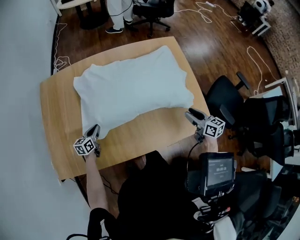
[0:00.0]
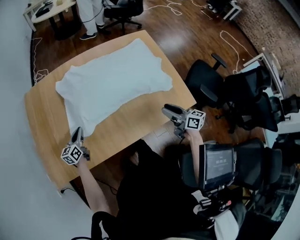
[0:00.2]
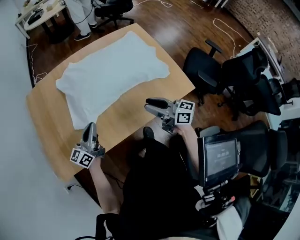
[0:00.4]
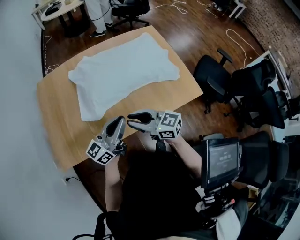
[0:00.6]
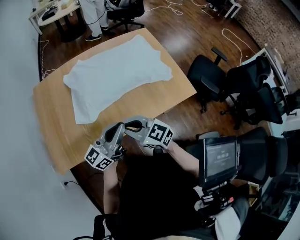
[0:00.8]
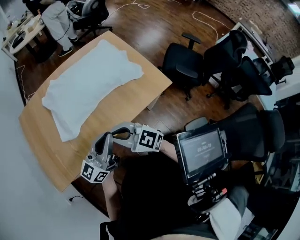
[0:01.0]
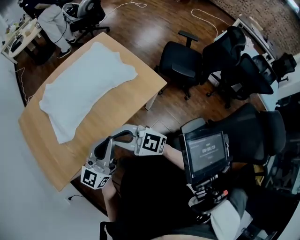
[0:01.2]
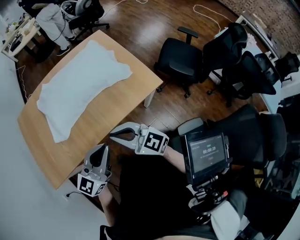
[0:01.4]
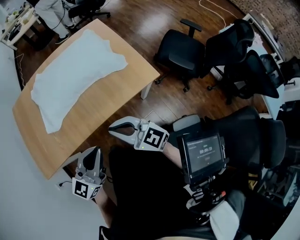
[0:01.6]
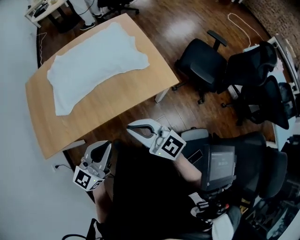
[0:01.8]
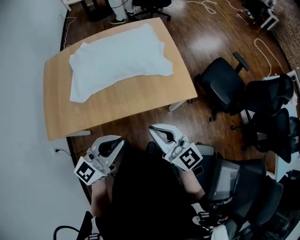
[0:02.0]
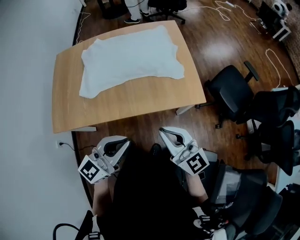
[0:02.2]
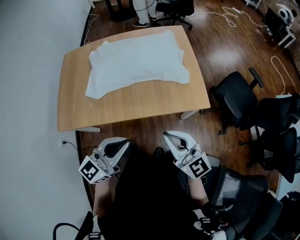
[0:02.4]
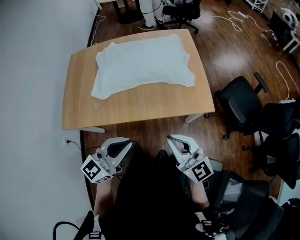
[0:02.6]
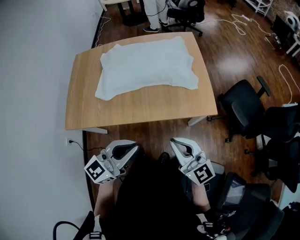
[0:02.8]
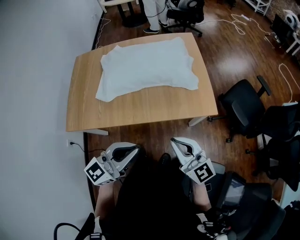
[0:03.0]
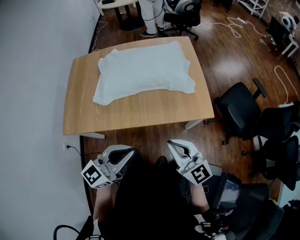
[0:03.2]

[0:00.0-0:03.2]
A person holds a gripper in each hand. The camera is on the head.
0:00.0 to 0:01.6: The right gripper shifts some 35 cm backward, upward and to the left, changes its angle by approximately 40 degrees, and closes up; the left gripper is displaced to the right, backward and upward by approximately 60 cm, and tilts its fingers some 30 degrees upward.
0:01.6 to 0:03.2: The right gripper shifts about 5 cm to the right. The left gripper ends up approximately 5 cm from where it was.

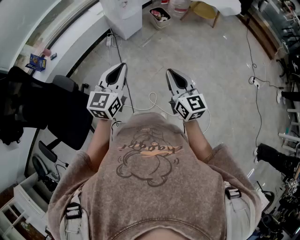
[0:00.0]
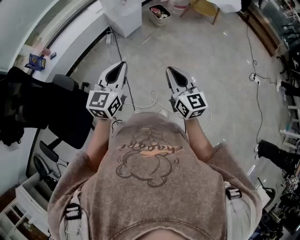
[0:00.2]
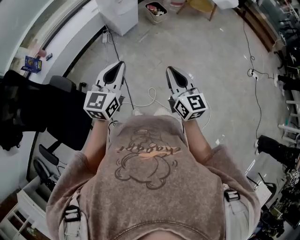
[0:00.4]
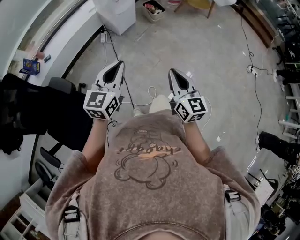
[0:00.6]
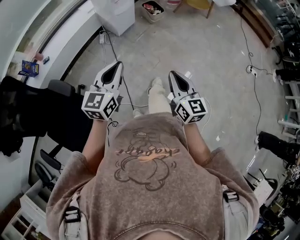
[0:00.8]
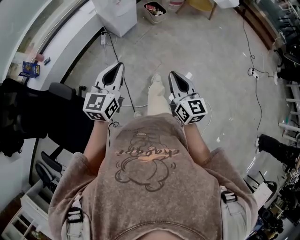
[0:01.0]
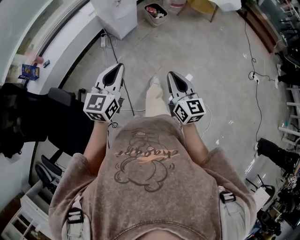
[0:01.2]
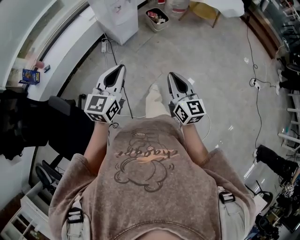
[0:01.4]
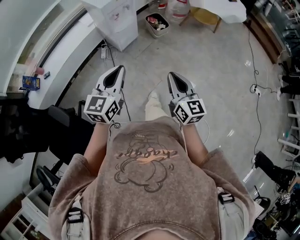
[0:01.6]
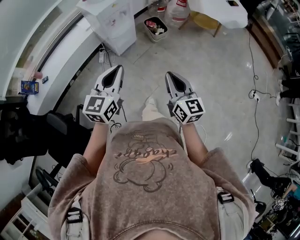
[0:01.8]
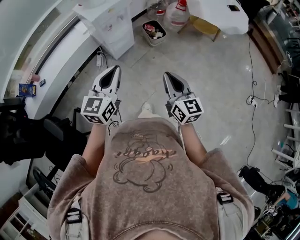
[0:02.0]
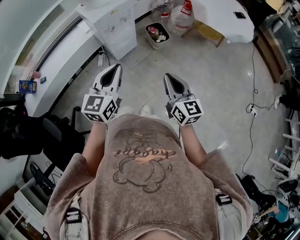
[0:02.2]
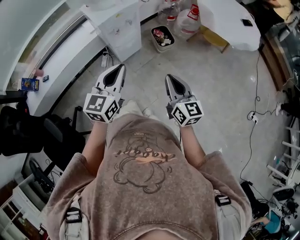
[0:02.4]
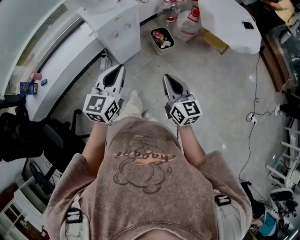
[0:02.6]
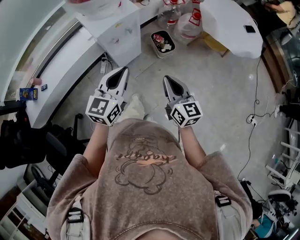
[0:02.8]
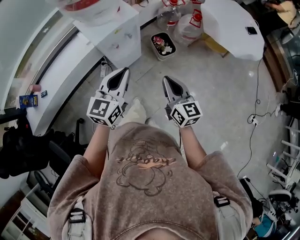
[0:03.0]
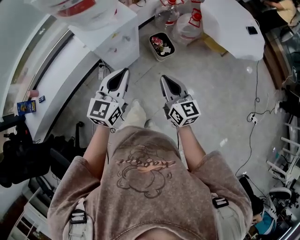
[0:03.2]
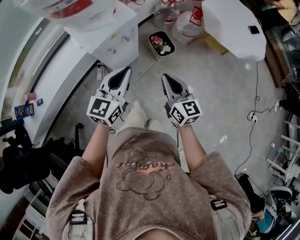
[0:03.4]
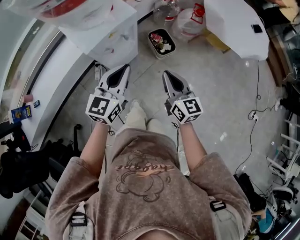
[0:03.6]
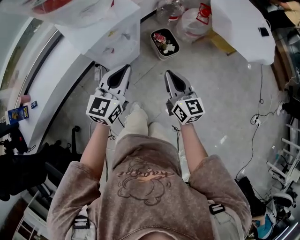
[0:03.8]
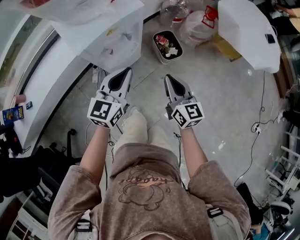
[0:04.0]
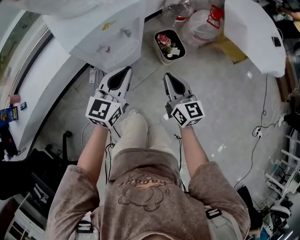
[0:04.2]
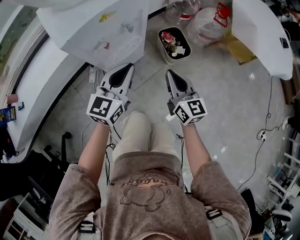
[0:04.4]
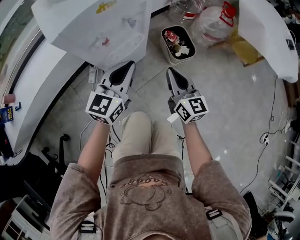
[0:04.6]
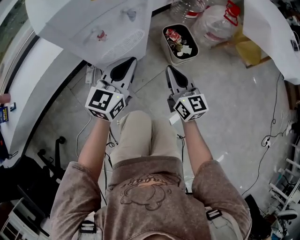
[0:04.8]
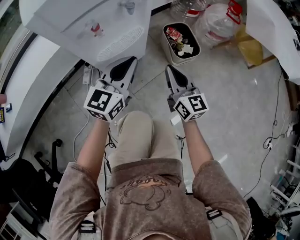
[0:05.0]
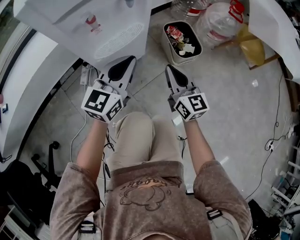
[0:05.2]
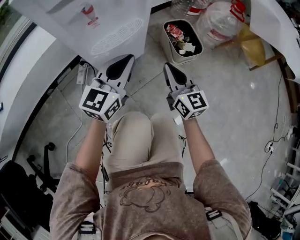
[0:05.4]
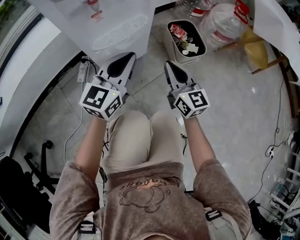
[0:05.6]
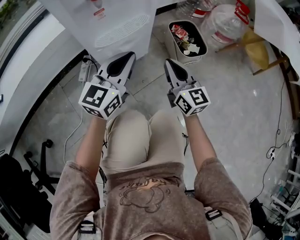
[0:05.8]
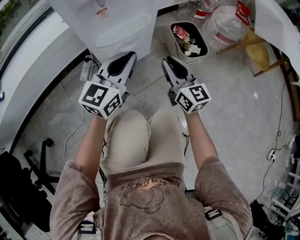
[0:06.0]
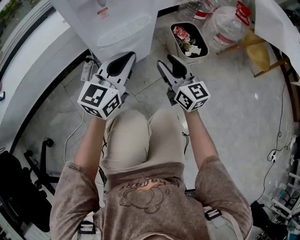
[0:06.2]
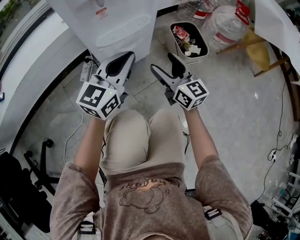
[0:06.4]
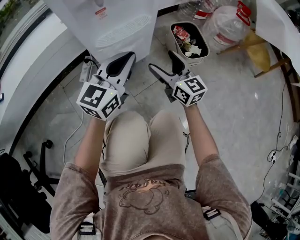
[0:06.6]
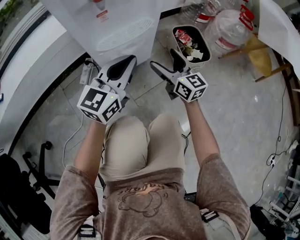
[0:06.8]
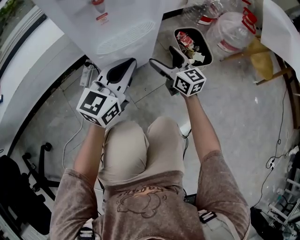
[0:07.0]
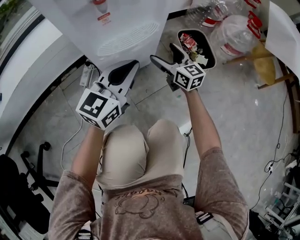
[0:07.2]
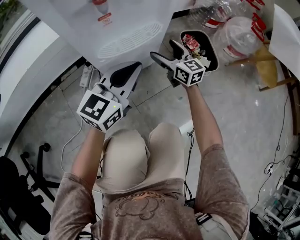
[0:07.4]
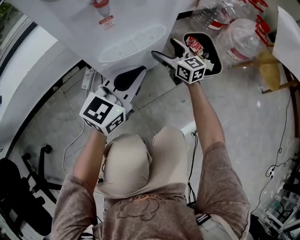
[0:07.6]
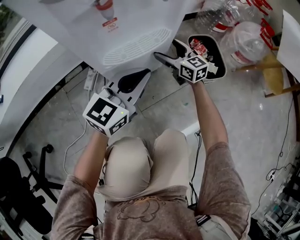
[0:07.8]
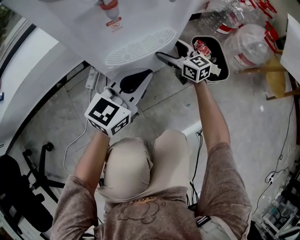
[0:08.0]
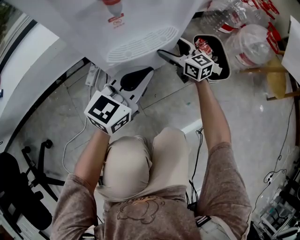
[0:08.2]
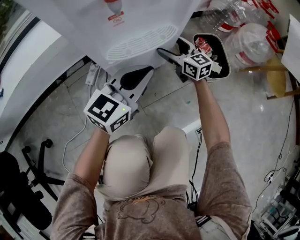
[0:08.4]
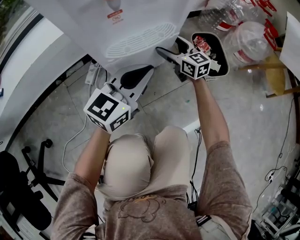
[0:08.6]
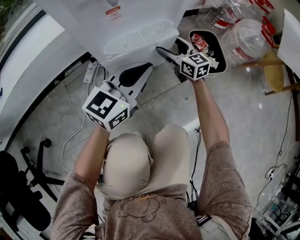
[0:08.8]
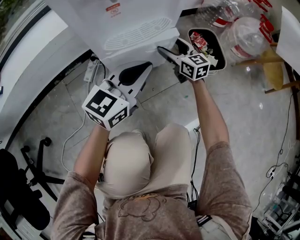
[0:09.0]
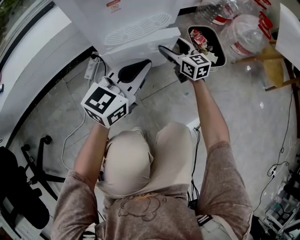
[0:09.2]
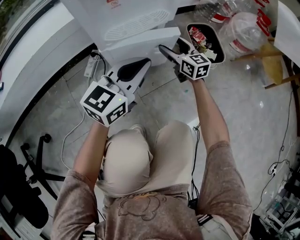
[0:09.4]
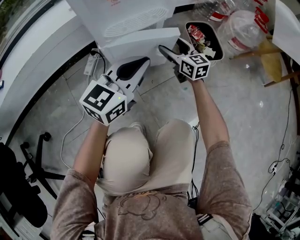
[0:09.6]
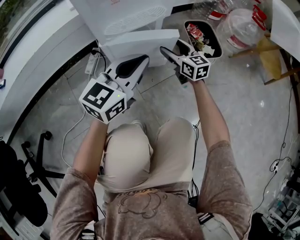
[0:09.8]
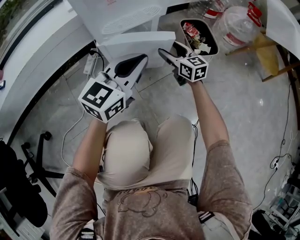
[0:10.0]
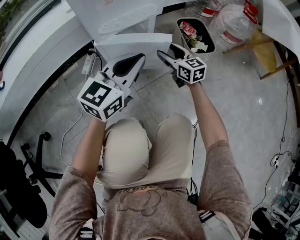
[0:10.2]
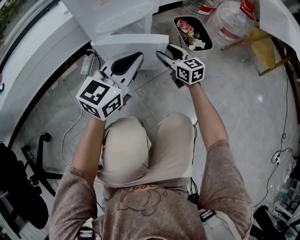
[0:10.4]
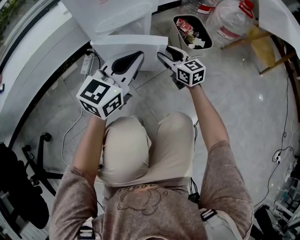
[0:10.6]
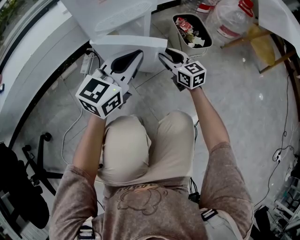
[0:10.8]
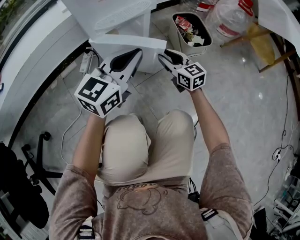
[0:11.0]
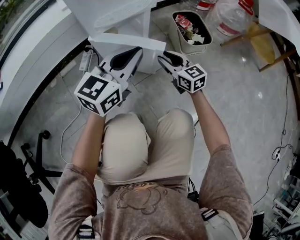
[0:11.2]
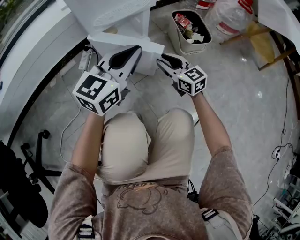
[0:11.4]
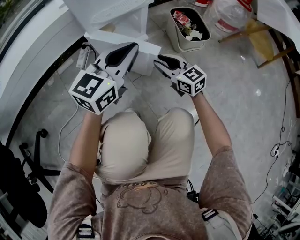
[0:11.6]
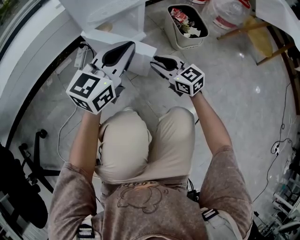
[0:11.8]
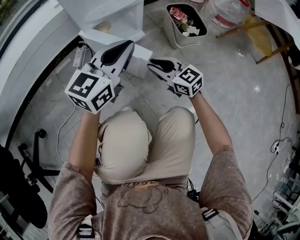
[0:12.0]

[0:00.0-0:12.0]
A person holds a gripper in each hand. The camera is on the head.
0:00.0 to 0:01.6: Both grippers travel together forward, approximately 20 cm.
0:01.6 to 0:03.0: Both grippers move forward, roughly 35 cm.
0:03.0 to 0:04.4: Both grippers move downward and forward, roughly 30 cm.
0:04.4 to 0:06.0: The grippers both shift downward by about 20 cm.
0:06.0 to 0:07.6: The left gripper ends up roughly 5 cm from where it was. The right gripper is displaced forward and downward by about 20 cm, and opens its fingers.
0:07.6 to 0:09.0: The grippers make only small movements.
0:09.0 to 0:10.4: The left gripper travels backward by some 5 cm; the right gripper moves backward, about 10 cm.
0:10.4 to 0:12.0: The right gripper shifts about 15 cm backward.

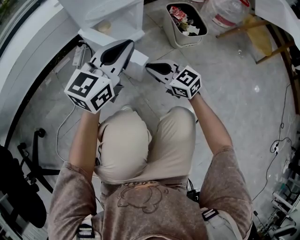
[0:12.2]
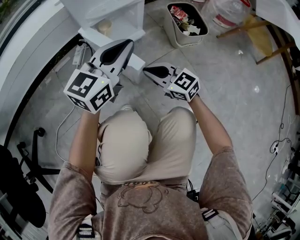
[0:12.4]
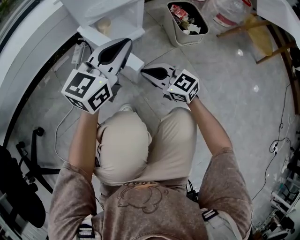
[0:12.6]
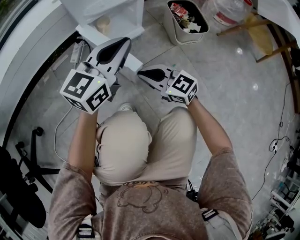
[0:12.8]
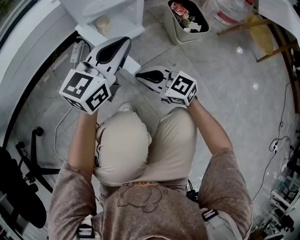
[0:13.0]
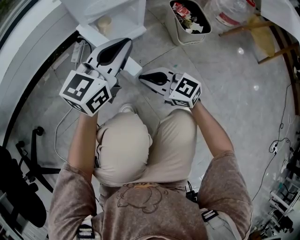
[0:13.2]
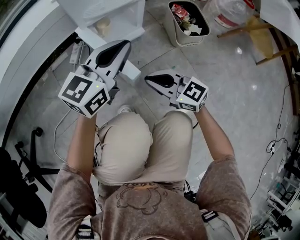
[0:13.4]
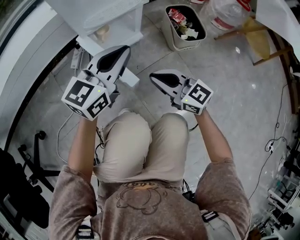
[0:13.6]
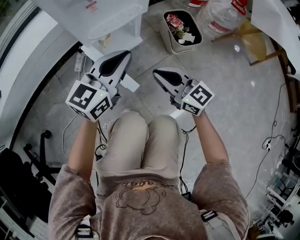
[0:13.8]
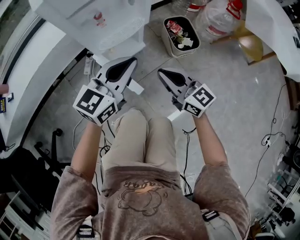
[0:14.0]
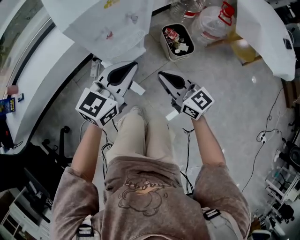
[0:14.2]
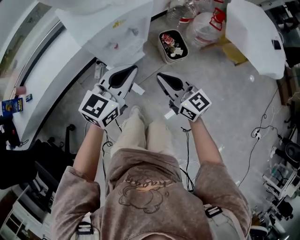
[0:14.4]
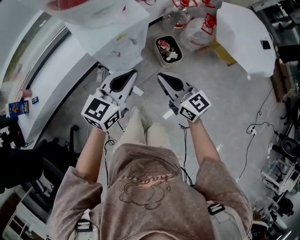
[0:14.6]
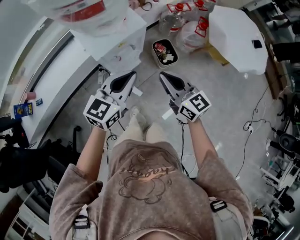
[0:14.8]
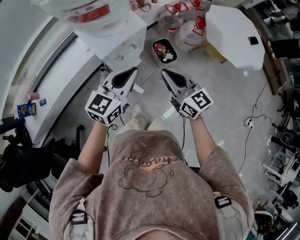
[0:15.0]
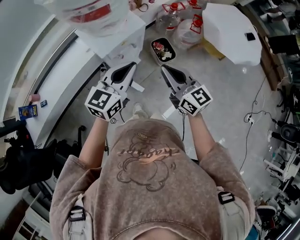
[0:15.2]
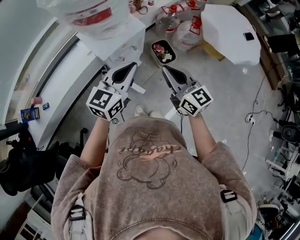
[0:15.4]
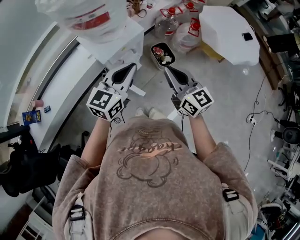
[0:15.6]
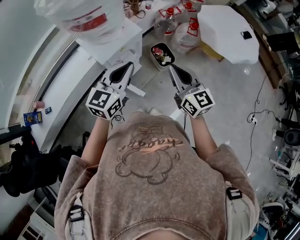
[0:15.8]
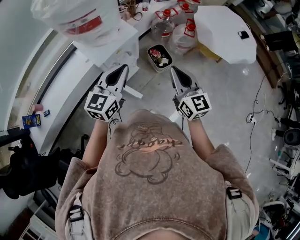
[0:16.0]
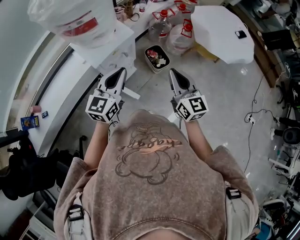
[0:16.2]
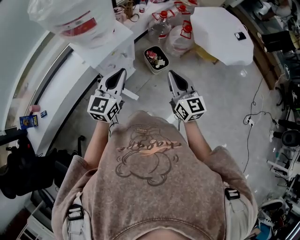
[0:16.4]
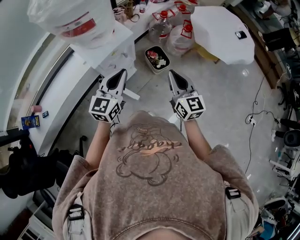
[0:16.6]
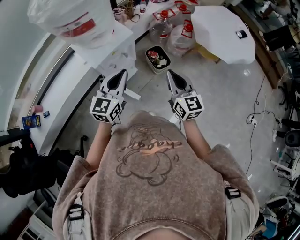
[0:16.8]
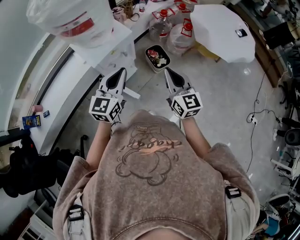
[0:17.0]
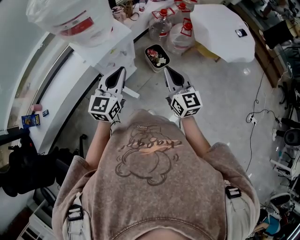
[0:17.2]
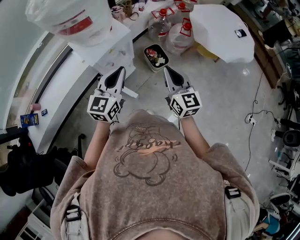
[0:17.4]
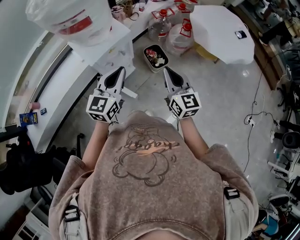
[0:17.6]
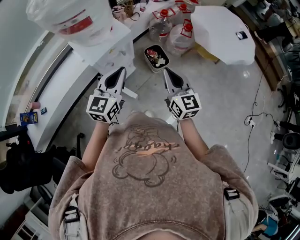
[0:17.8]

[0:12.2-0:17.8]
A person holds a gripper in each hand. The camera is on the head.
0:12.2 to 0:13.6: The right gripper is displaced upward by roughly 10 cm.
0:13.6 to 0:15.0: The two grippers go some 50 cm upward. The right gripper rotates about 30 degrees.
0:15.0 to 0:16.4: The right gripper is displaced to the right by about 10 cm, and changes its angle by roughly 20 degrees.
0:16.4 to 0:17.8: There are only small adjustments of the grippers.

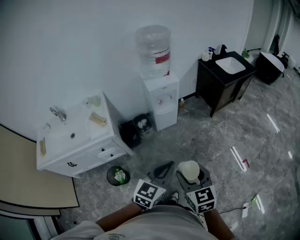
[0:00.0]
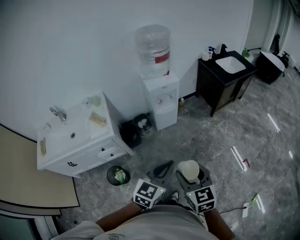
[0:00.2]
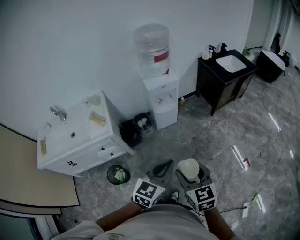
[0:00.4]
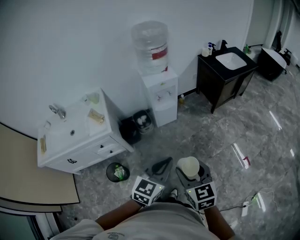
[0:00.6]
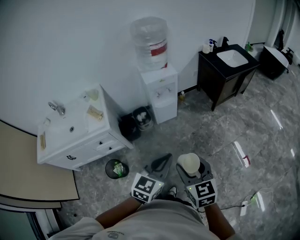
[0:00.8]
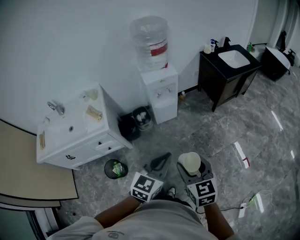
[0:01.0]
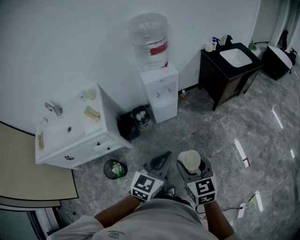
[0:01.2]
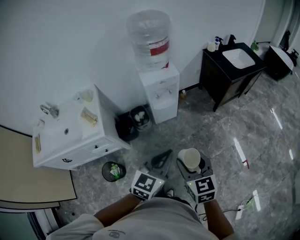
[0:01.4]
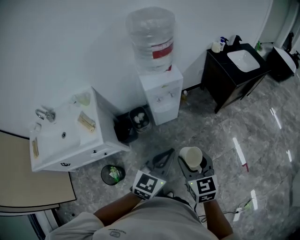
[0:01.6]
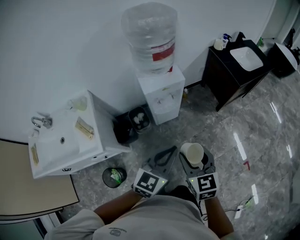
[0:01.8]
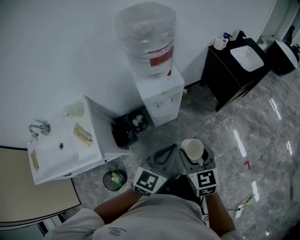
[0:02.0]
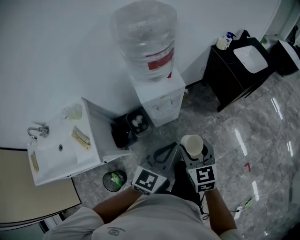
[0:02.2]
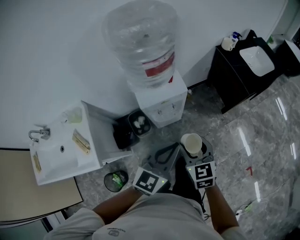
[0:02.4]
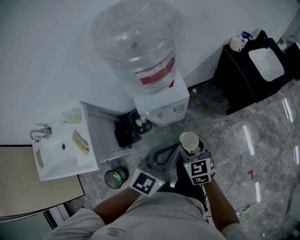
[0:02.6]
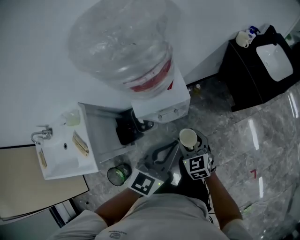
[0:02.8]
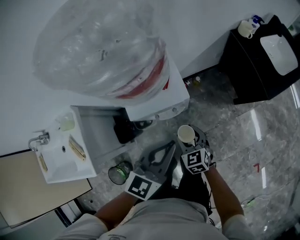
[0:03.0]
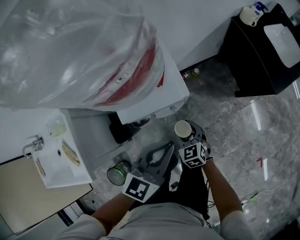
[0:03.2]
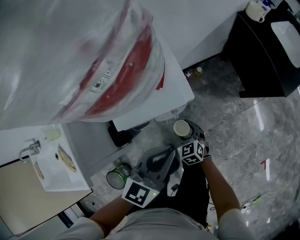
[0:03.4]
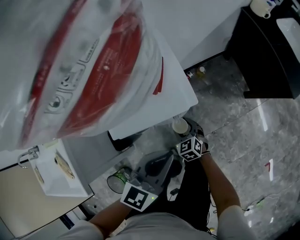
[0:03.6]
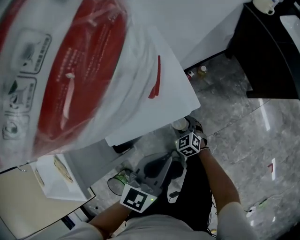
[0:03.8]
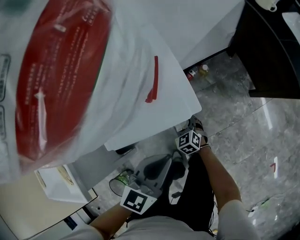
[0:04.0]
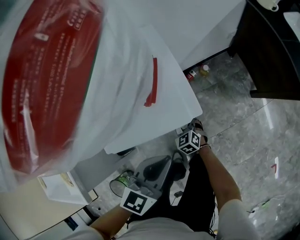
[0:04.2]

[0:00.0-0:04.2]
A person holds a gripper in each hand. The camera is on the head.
0:00.0 to 0:01.4: Both grippers move forward, some 15 cm.
0:01.4 to 0:02.8: The two grippers travel together, forward, some 40 cm.
0:02.8 to 0:04.2: The left gripper heads downward, covering some 30 cm. Meanwhile the right gripper is displaced downward by approximately 40 cm.
